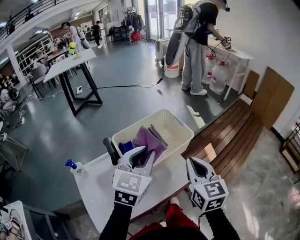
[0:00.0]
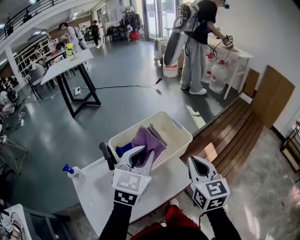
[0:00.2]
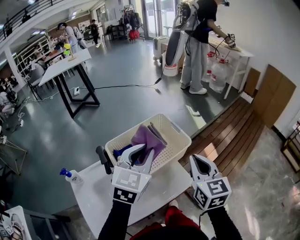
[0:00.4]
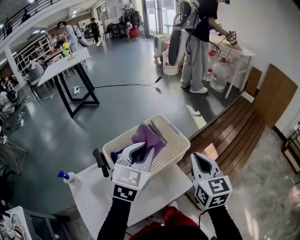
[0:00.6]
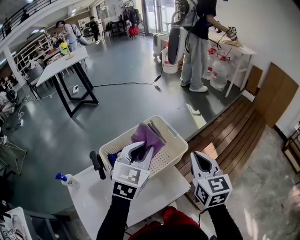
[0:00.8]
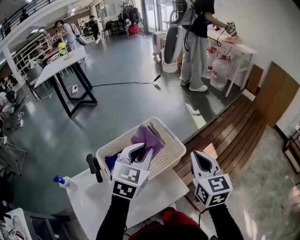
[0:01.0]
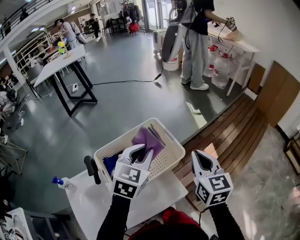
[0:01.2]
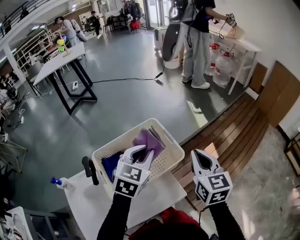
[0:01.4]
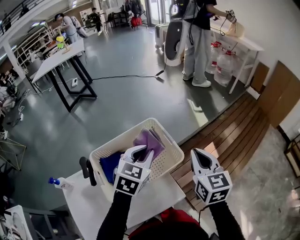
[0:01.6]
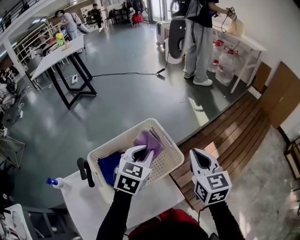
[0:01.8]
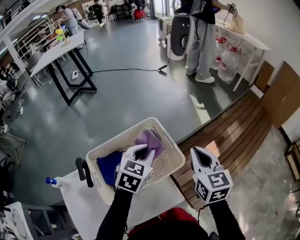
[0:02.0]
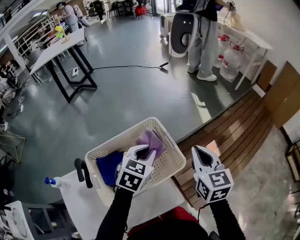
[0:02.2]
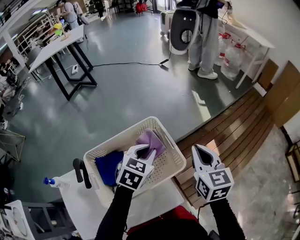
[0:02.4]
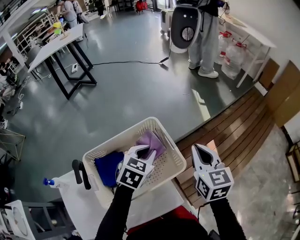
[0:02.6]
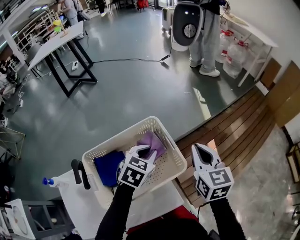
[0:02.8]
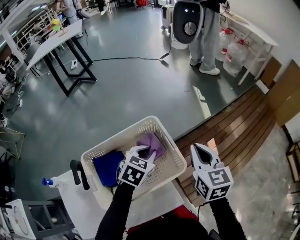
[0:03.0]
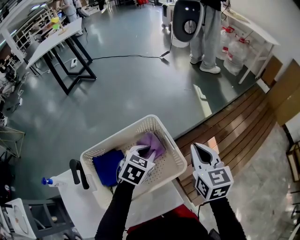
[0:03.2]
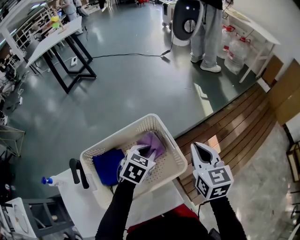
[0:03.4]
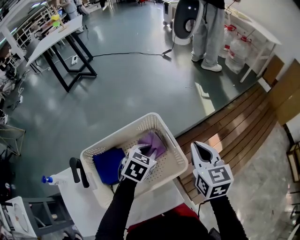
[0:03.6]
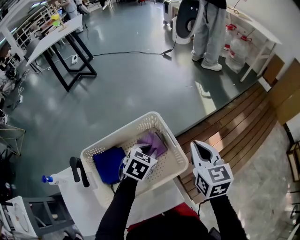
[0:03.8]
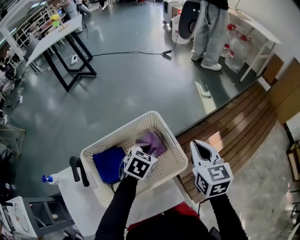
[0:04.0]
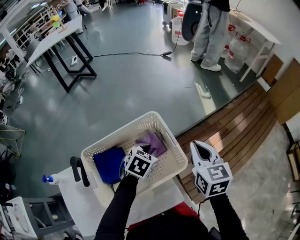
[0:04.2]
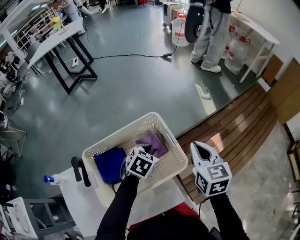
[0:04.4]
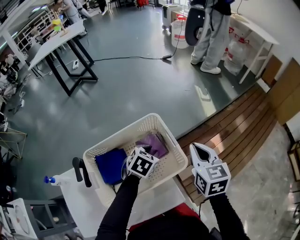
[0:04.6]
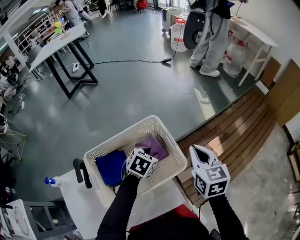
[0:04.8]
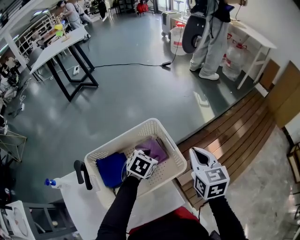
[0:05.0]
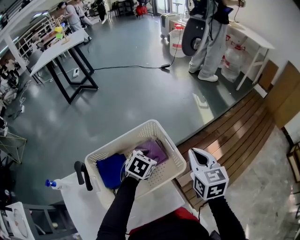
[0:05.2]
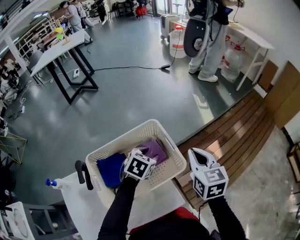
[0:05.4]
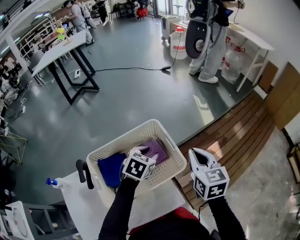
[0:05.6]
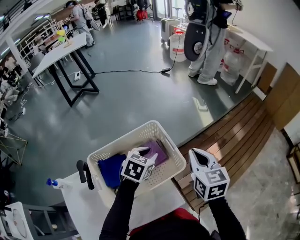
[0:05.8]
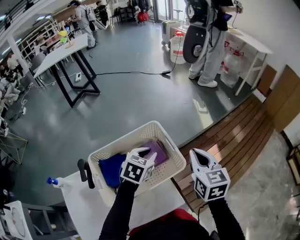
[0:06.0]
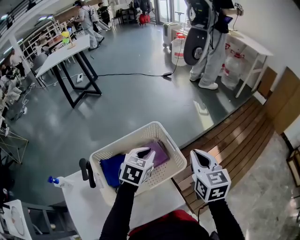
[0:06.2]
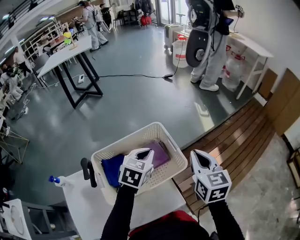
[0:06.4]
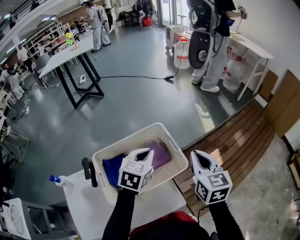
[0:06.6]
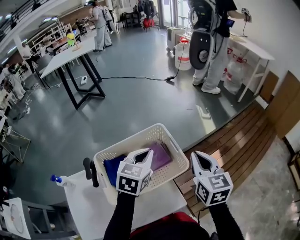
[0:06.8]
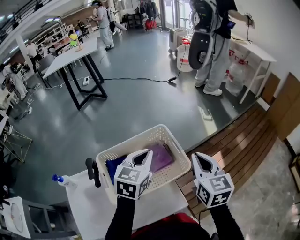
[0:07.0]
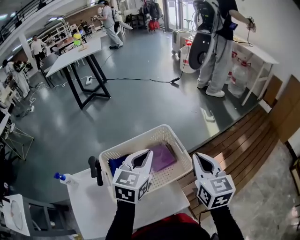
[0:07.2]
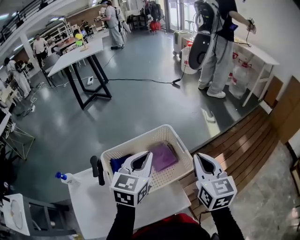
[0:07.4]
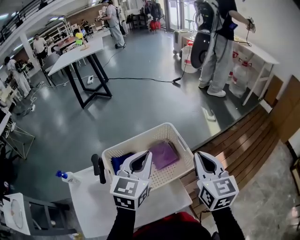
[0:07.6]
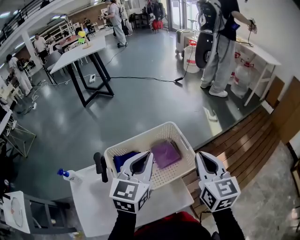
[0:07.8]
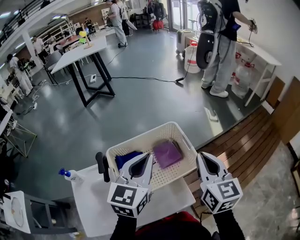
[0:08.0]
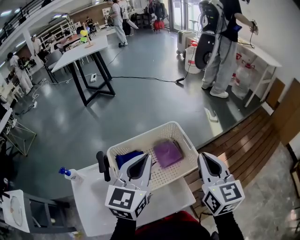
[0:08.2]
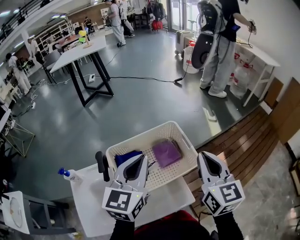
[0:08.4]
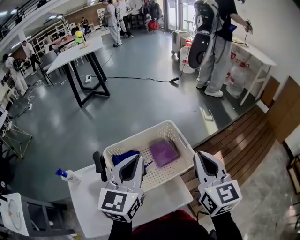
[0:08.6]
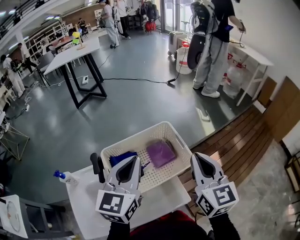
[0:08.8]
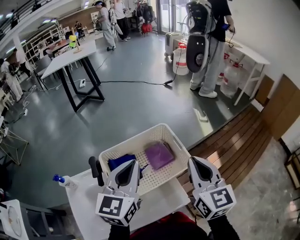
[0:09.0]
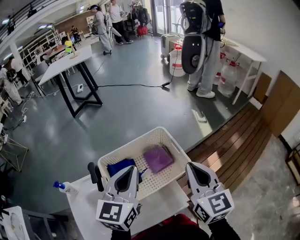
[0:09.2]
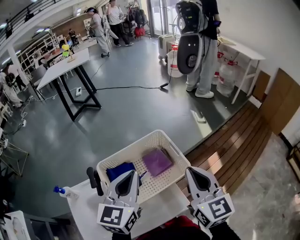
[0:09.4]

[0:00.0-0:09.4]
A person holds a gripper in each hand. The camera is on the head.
0:00.0 to 0:01.6: The right gripper heads forward and to the right, covering roughly 20 cm; the left gripper goes roughly 20 cm forward and downward.
0:01.6 to 0:03.2: The left gripper shifts roughly 15 cm downward and forward; the right gripper moves forward, some 5 cm.
0:03.2 to 0:04.8: The left gripper heads downward, covering approximately 5 cm.
0:04.8 to 0:06.2: The left gripper heads upward, covering about 10 cm, and closes its fingers.
0:06.2 to 0:07.8: The right gripper shifts some 5 cm upward; the left gripper heads upward, backward and to the left, covering roughly 15 cm, and swivels about 30 degrees.
0:07.8 to 0:09.4: There are only small adjustments of the grippers.

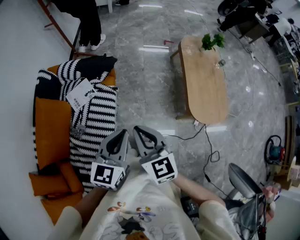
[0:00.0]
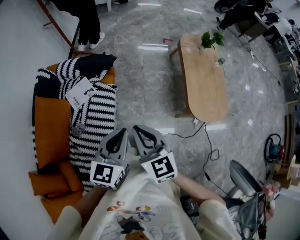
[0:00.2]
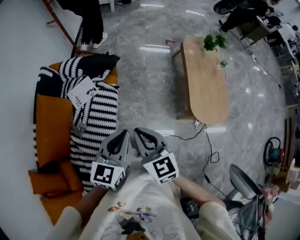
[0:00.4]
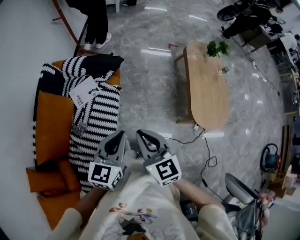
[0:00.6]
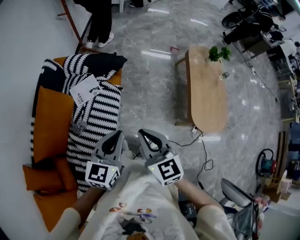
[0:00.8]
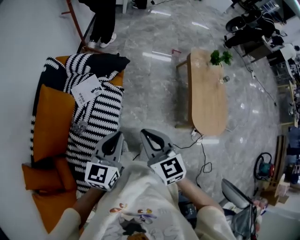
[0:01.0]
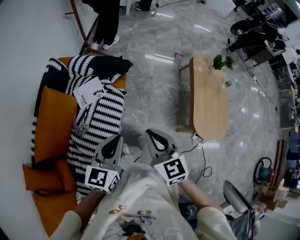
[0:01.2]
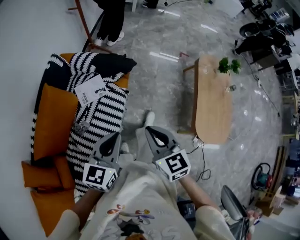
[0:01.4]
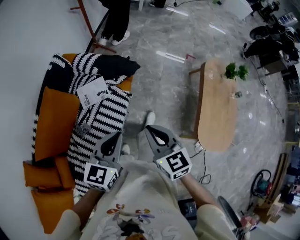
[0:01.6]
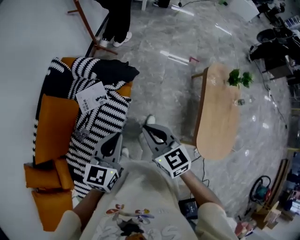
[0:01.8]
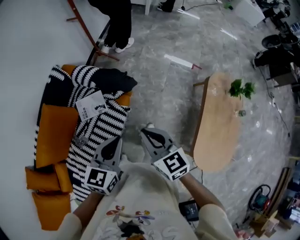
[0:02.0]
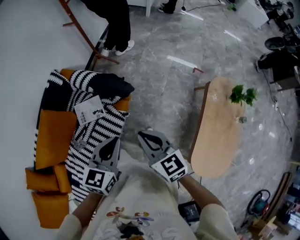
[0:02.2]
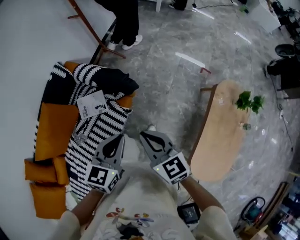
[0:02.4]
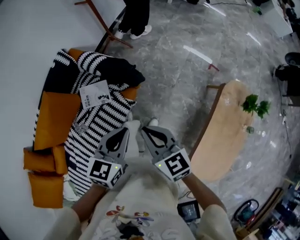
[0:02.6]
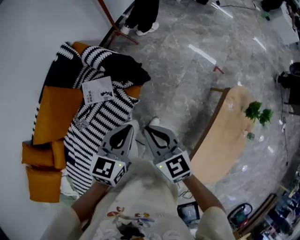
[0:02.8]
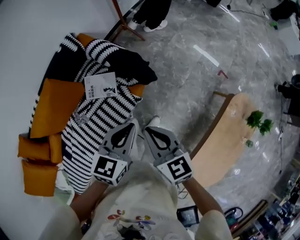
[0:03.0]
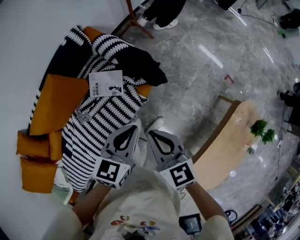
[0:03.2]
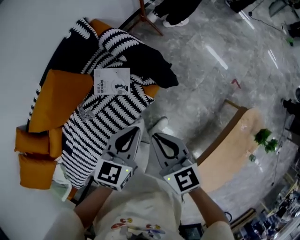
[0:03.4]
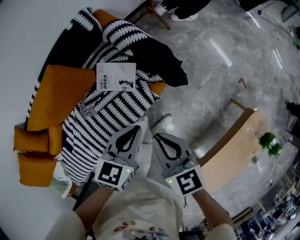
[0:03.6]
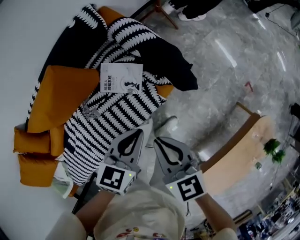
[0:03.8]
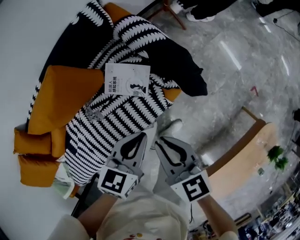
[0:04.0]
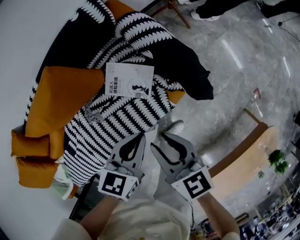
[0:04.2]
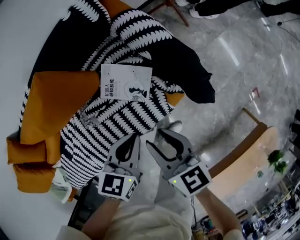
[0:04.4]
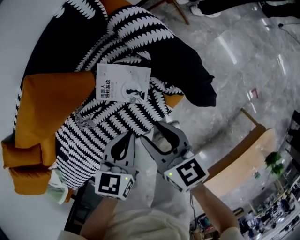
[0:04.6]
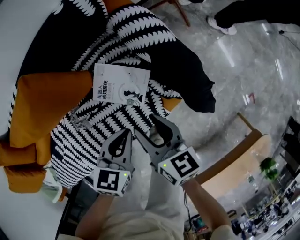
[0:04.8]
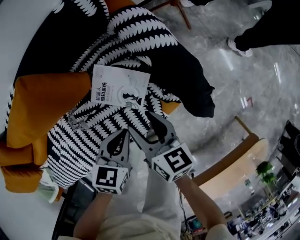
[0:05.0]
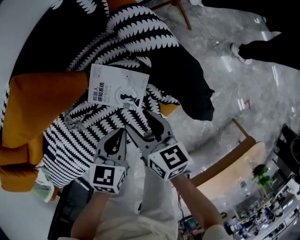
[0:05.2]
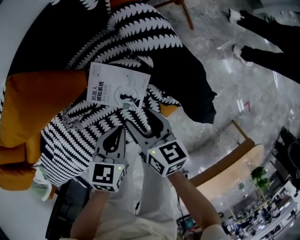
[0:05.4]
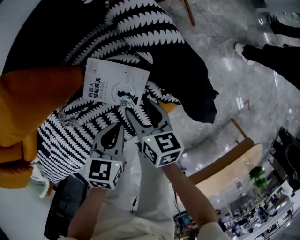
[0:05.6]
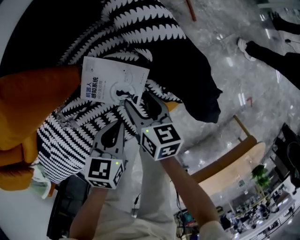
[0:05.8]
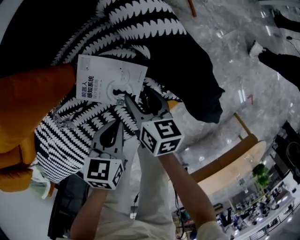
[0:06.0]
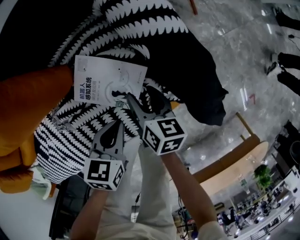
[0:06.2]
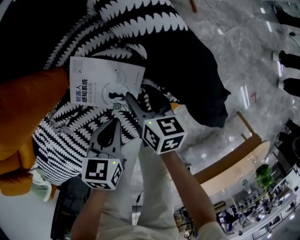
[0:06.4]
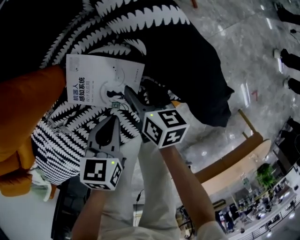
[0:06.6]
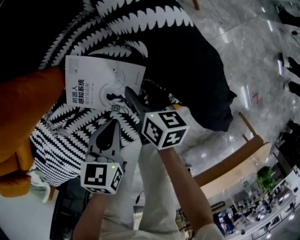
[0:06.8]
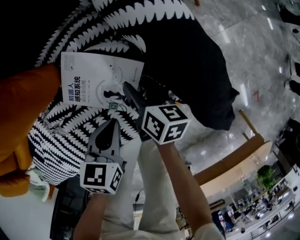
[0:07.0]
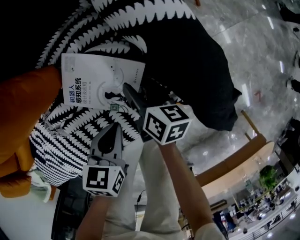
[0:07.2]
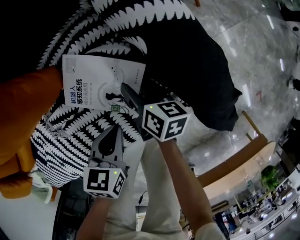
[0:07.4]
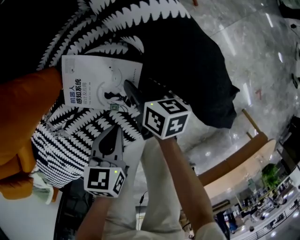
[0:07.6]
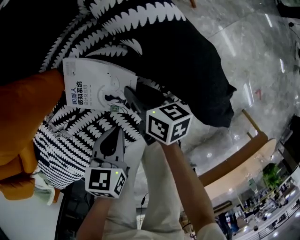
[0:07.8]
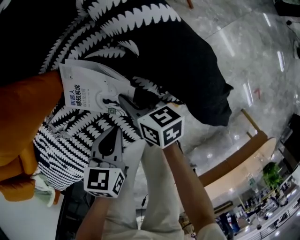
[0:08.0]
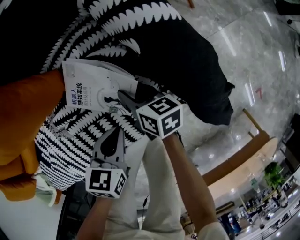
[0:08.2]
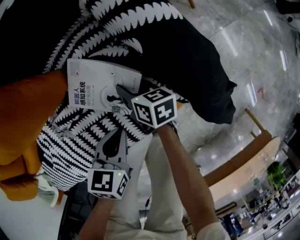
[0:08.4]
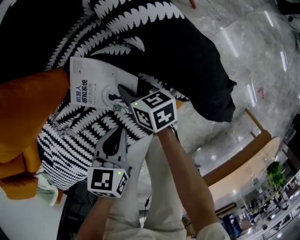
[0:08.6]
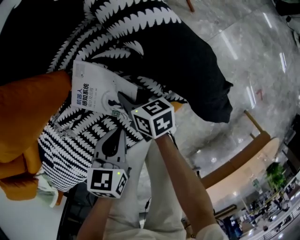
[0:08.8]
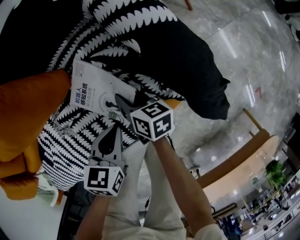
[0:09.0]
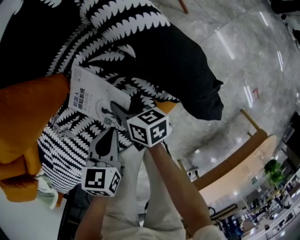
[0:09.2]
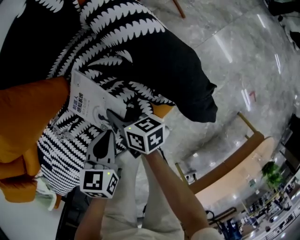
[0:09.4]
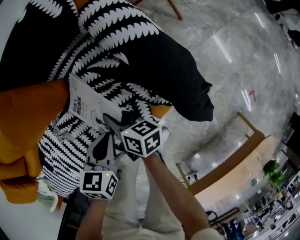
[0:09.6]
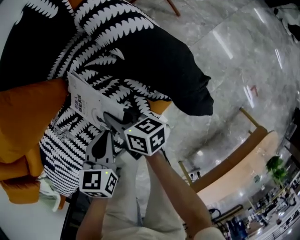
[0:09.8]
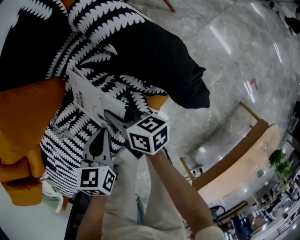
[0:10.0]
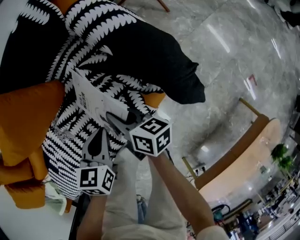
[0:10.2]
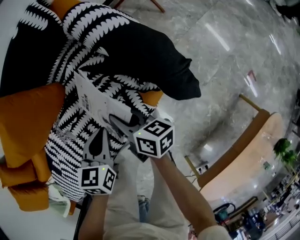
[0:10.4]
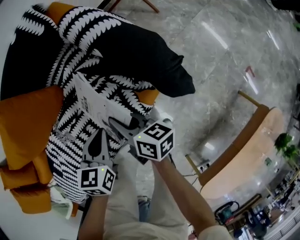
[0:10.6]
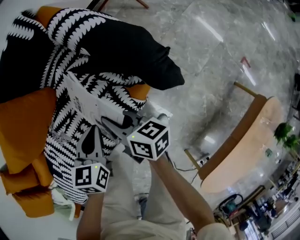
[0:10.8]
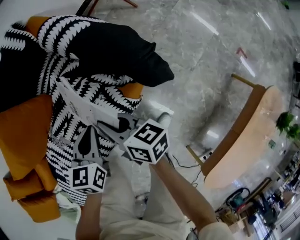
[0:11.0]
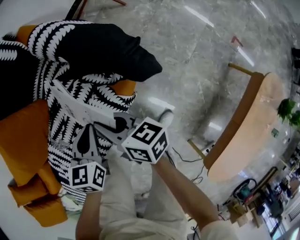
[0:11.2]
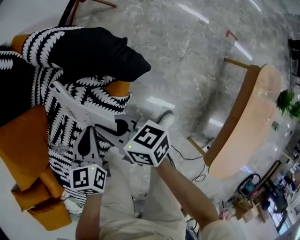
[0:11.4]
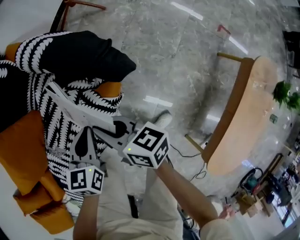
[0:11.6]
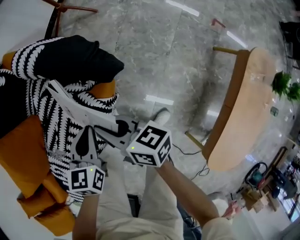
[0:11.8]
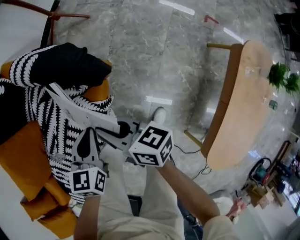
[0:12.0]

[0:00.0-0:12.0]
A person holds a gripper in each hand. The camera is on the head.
0:00.0 to 0:01.6: The left gripper goes about 15 cm forward and to the left; the right gripper travels forward by approximately 15 cm.
0:01.6 to 0:03.0: The left gripper shifts some 25 cm forward and to the right, while the right gripper goes roughly 20 cm forward, and changes its angle by approximately 20 degrees.
0:03.0 to 0:04.4: Both grippers move downward, to the left and forward, roughly 35 cm. The left gripper turns by some 30 degrees. The right gripper turns by roughly 20 degrees, and opens.
0:04.4 to 0:06.0: The left gripper goes about 15 cm downward. The right gripper moves downward and forward, about 30 cm, changes its angle by about 20 degrees, and opens its fingers.
0:06.0 to 0:07.6: Both grippers move downward, some 5 cm.
0:07.6 to 0:09.0: The right gripper moves some 5 cm, and closes.
0:09.0 to 0:10.4: The left gripper moves upward, about 5 cm. The right gripper heads upward and backward, covering about 15 cm.
0:10.4 to 0:12.0: The right gripper travels to the right by about 5 cm, and turns by roughly 20 degrees, while the left gripper heads to the right and downward, covering about 10 cm, and turns by approximately 30 degrees.

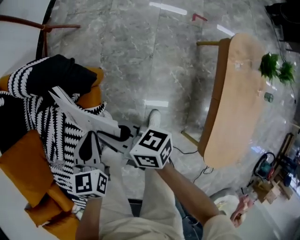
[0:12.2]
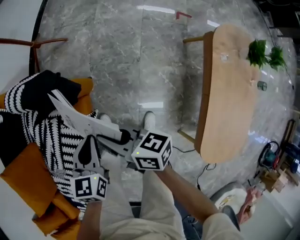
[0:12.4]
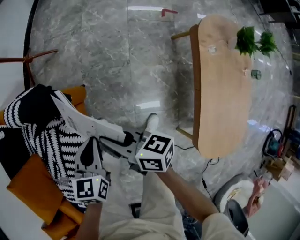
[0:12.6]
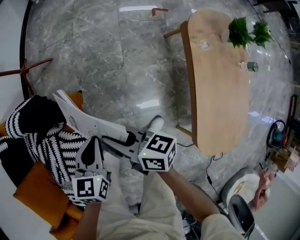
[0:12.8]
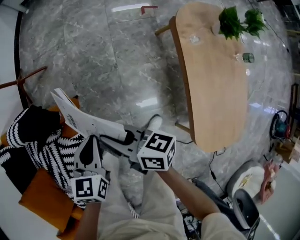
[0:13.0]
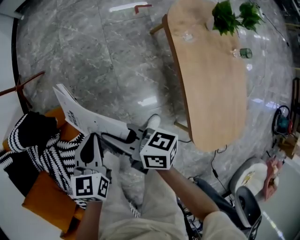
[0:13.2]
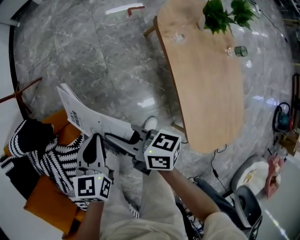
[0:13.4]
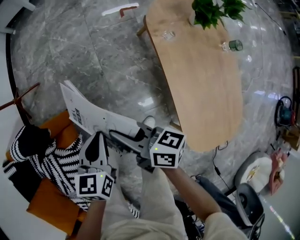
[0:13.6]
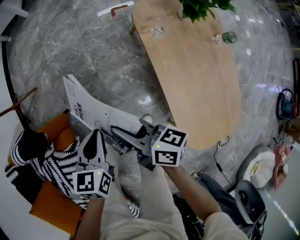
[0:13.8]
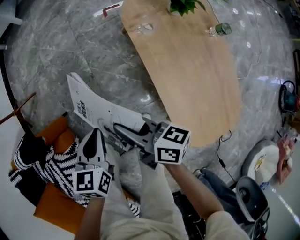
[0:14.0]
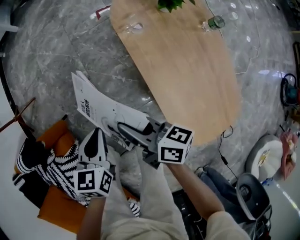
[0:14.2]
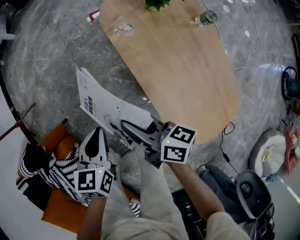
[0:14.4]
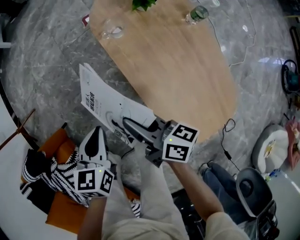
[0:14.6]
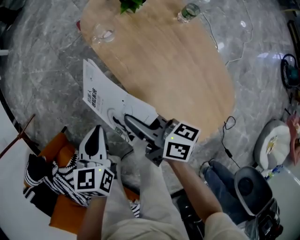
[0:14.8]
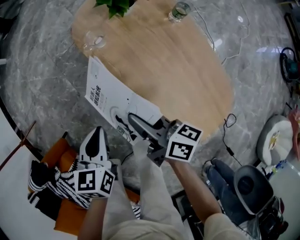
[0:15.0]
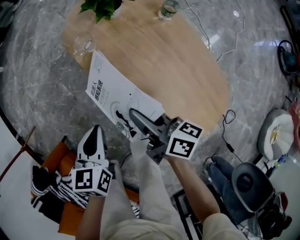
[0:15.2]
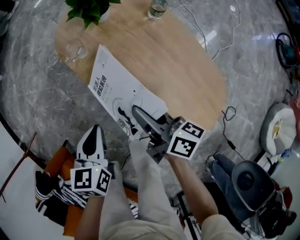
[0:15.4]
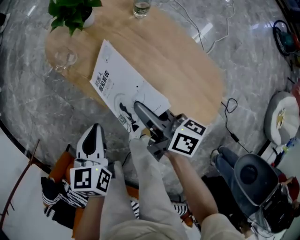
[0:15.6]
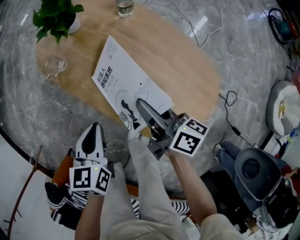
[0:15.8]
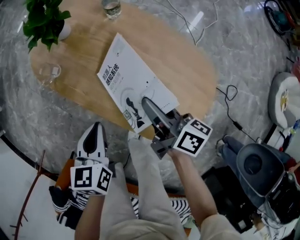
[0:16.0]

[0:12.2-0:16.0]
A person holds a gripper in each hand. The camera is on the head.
0:12.2 to 0:13.4: The right gripper shifts by some 35 cm, and turns by about 30 degrees; the left gripper ends up approximately 35 cm from where it was, and turns by some 30 degrees.
0:13.4 to 0:14.8: Both grippers move to the right, about 30 cm. The right gripper turns by about 30 degrees.
0:14.8 to 0:16.0: The left gripper moves roughly 20 cm, and rotates approximately 20 degrees, while the right gripper ends up some 25 cm from where it was, and rotates some 40 degrees.
